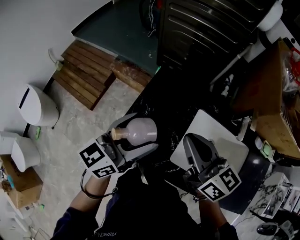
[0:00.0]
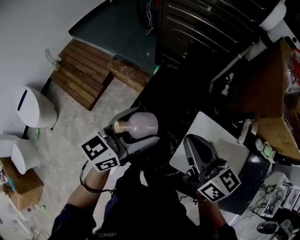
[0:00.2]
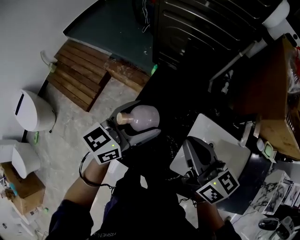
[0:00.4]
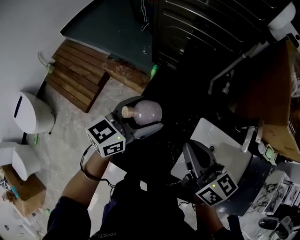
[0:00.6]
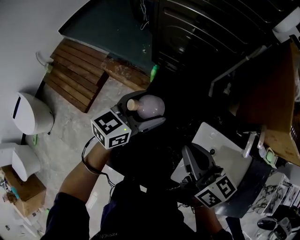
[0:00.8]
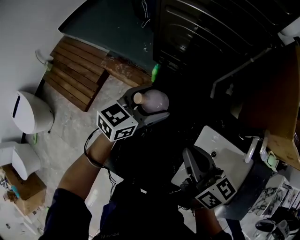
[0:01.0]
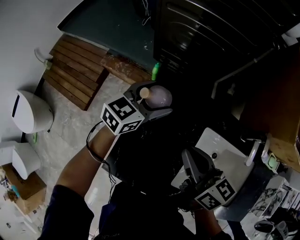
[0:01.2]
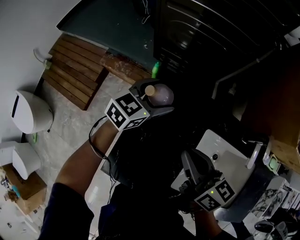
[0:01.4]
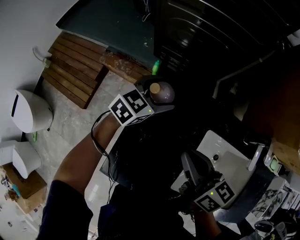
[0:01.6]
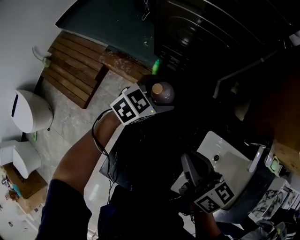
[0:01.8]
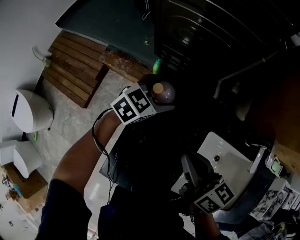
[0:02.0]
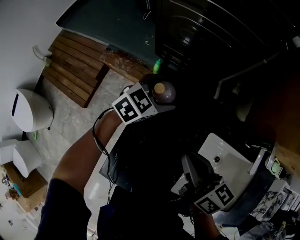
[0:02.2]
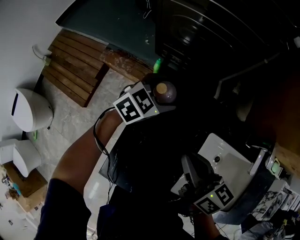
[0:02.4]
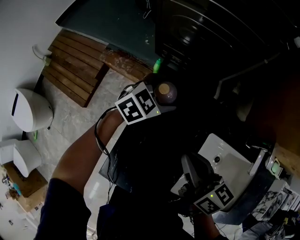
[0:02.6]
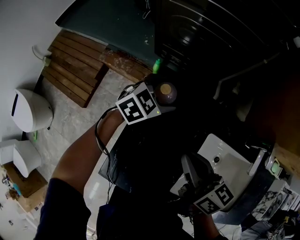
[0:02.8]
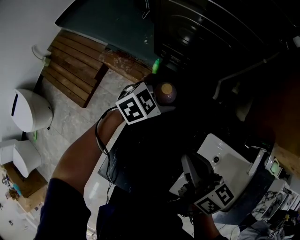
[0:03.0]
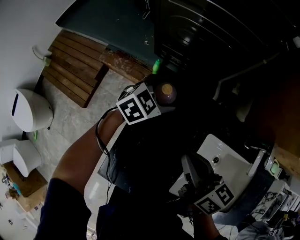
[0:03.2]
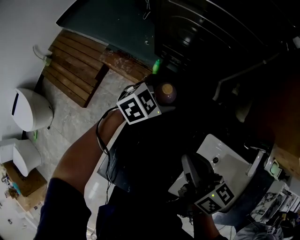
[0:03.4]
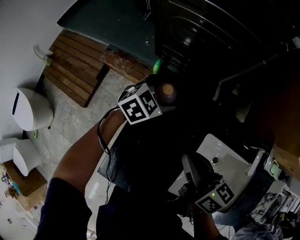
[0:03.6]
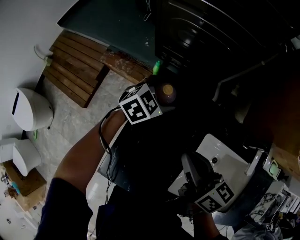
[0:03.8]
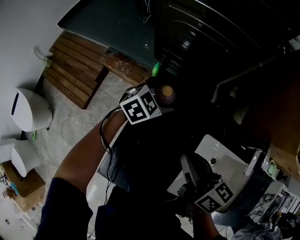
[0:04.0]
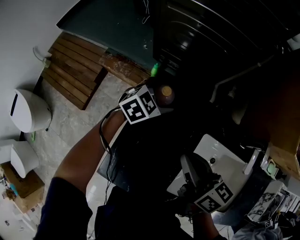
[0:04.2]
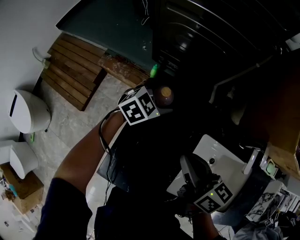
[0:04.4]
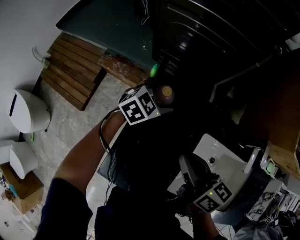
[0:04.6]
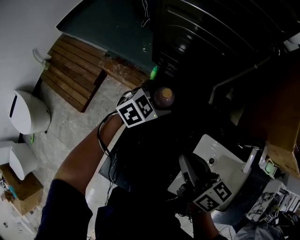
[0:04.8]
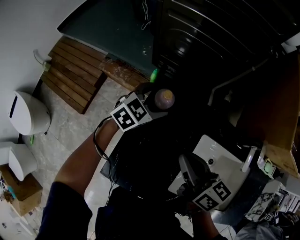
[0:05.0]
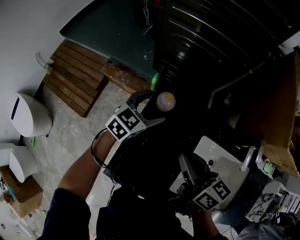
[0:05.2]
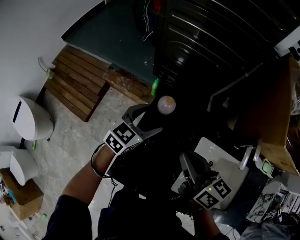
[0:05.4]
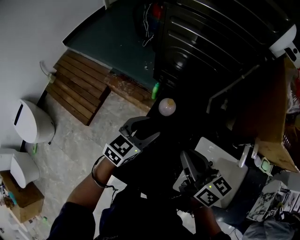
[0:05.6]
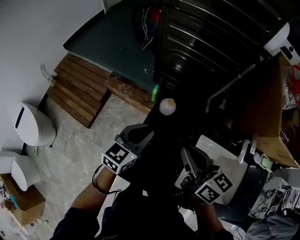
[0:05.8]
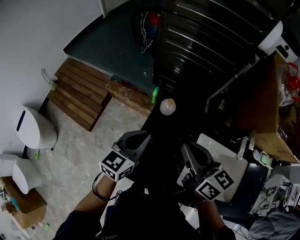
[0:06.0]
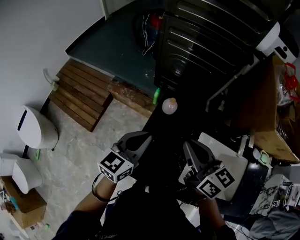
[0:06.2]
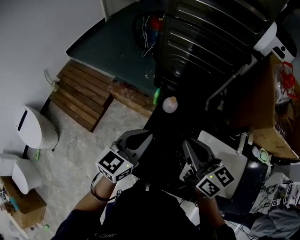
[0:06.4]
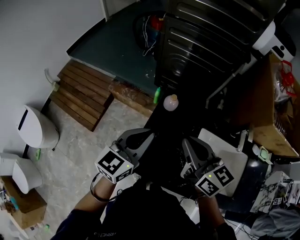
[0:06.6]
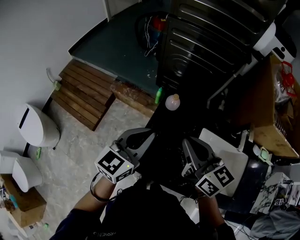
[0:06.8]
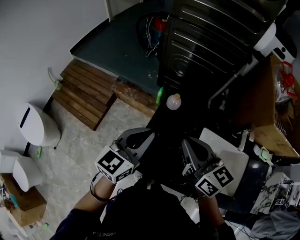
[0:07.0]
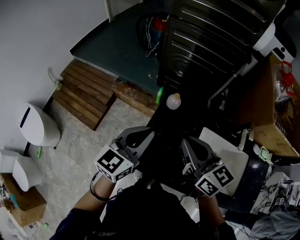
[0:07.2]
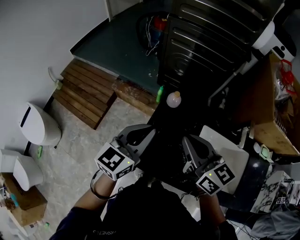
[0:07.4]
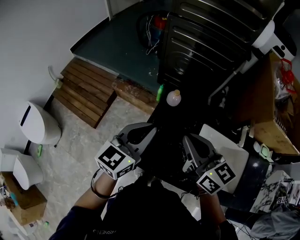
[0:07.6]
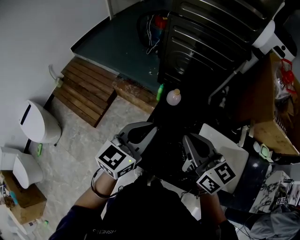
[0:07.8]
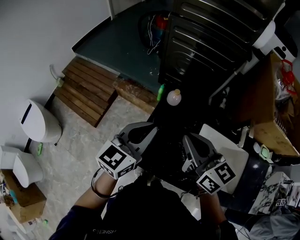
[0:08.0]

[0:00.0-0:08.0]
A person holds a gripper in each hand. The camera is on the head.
0:00.0 to 0:01.6: The left gripper moves forward and downward, some 35 cm, and tips its fingers downward by approximately 30 degrees. Meanwhile the right gripper goes approximately 15 cm downward and forward.
0:01.6 to 0:04.8: The grippers make only small movements.
0:04.8 to 0:06.4: The left gripper is displaced upward, backward and to the left by about 30 cm, turns by some 40 degrees, and closes its fingers. The right gripper heads upward, covering approximately 15 cm.
0:06.4 to 0:08.0: The grippers move only a little.

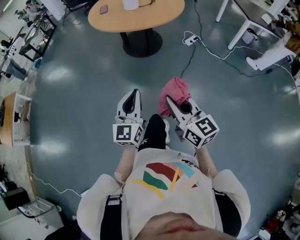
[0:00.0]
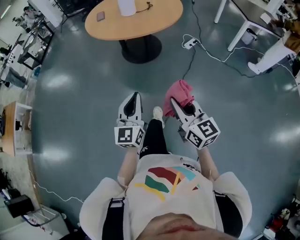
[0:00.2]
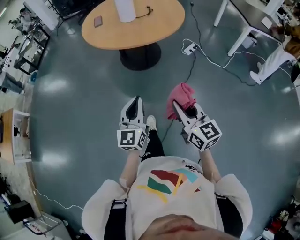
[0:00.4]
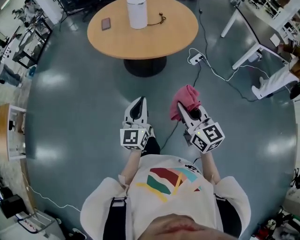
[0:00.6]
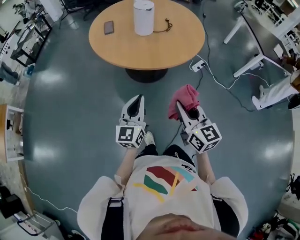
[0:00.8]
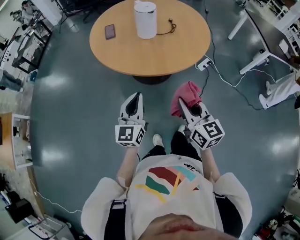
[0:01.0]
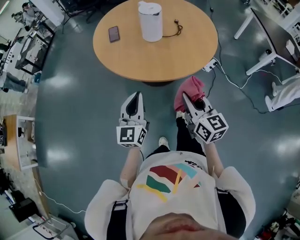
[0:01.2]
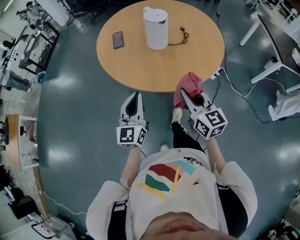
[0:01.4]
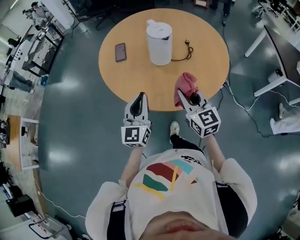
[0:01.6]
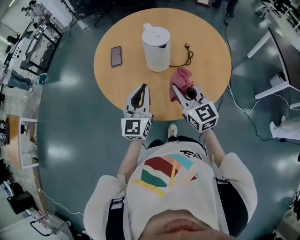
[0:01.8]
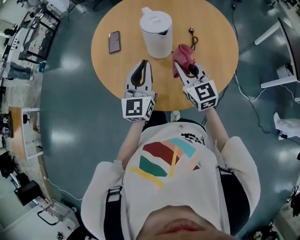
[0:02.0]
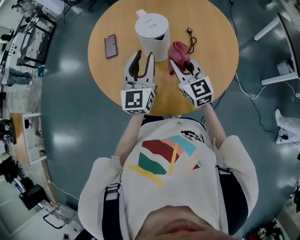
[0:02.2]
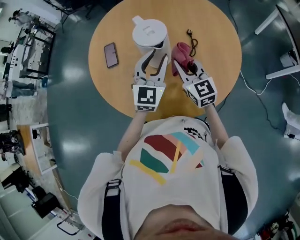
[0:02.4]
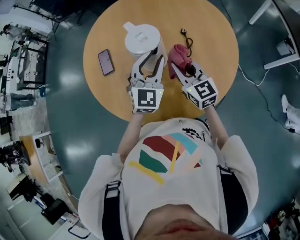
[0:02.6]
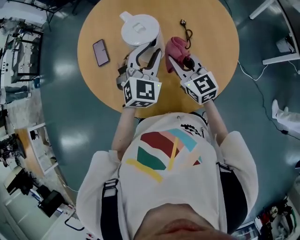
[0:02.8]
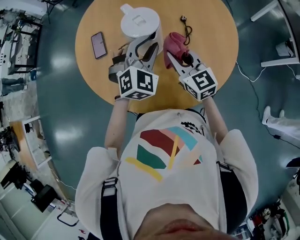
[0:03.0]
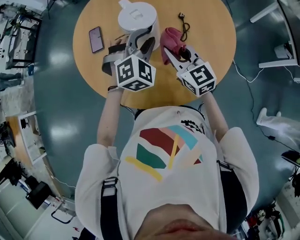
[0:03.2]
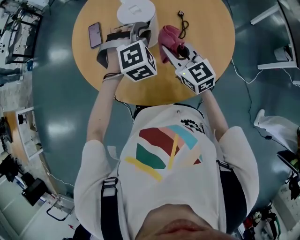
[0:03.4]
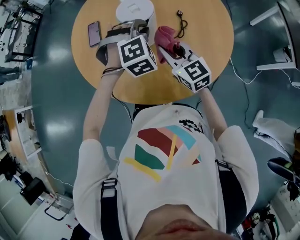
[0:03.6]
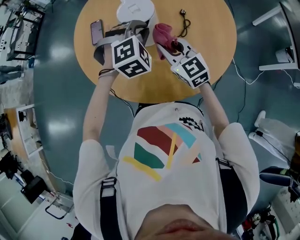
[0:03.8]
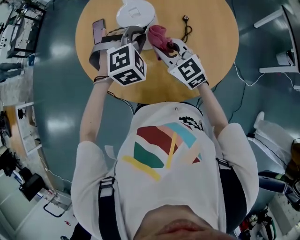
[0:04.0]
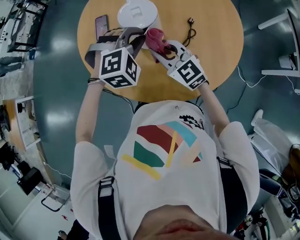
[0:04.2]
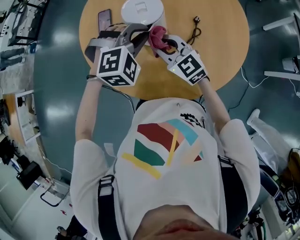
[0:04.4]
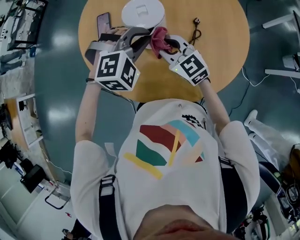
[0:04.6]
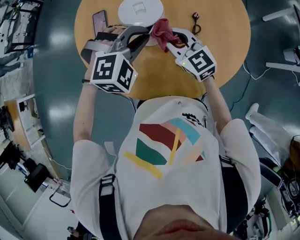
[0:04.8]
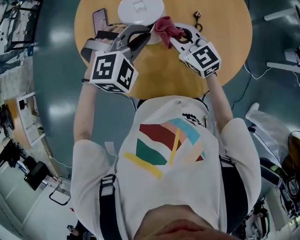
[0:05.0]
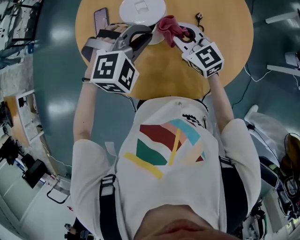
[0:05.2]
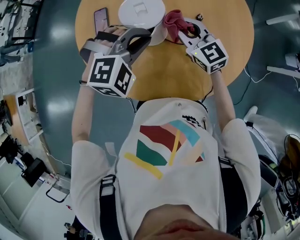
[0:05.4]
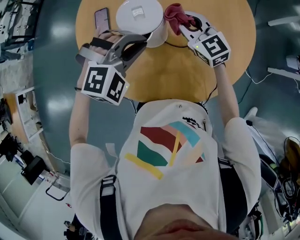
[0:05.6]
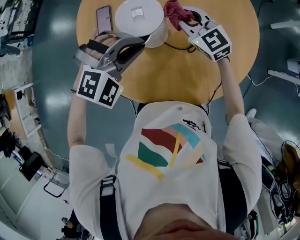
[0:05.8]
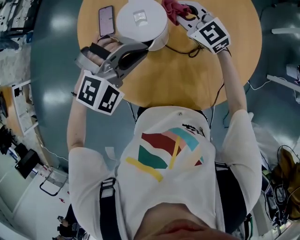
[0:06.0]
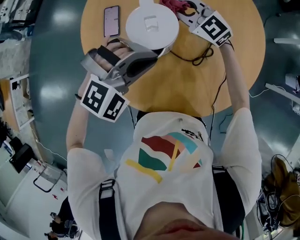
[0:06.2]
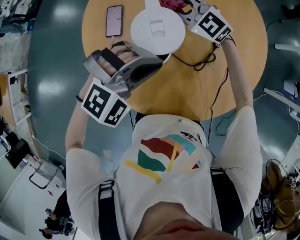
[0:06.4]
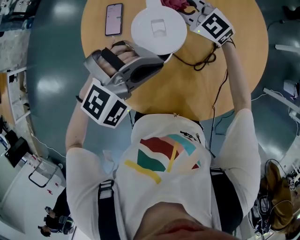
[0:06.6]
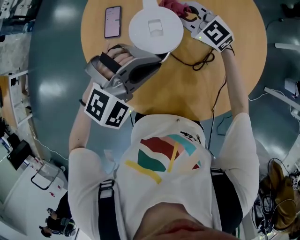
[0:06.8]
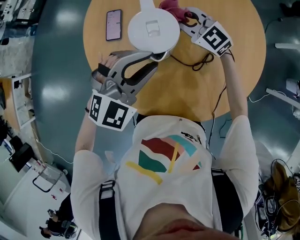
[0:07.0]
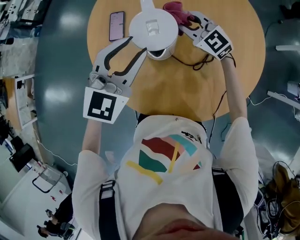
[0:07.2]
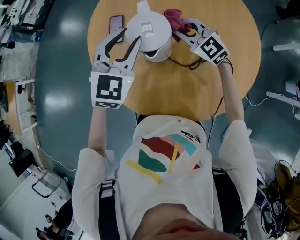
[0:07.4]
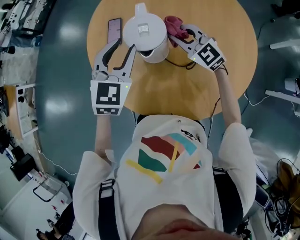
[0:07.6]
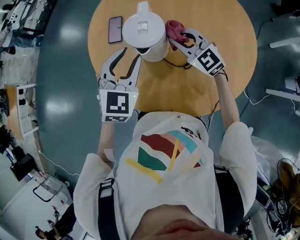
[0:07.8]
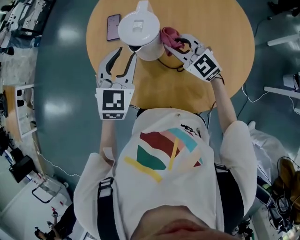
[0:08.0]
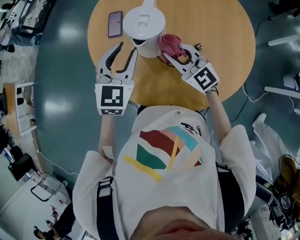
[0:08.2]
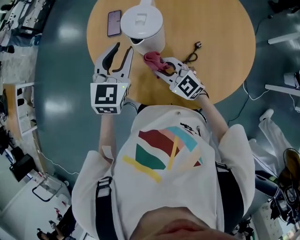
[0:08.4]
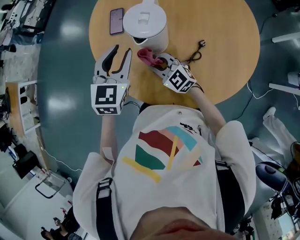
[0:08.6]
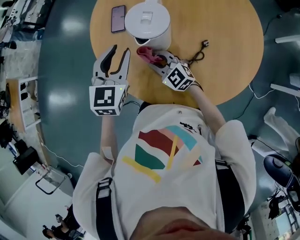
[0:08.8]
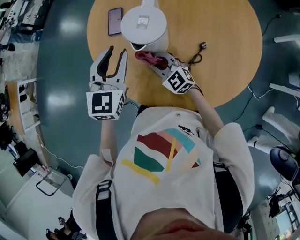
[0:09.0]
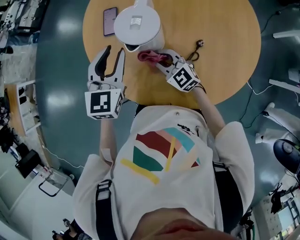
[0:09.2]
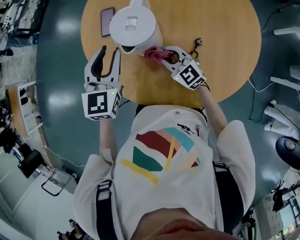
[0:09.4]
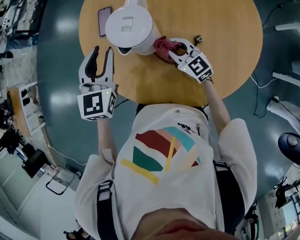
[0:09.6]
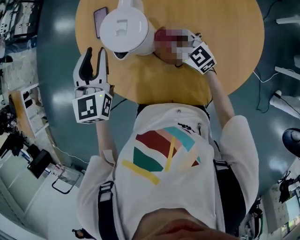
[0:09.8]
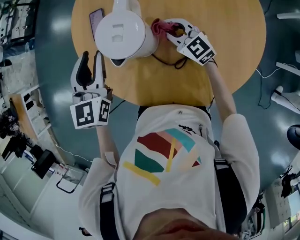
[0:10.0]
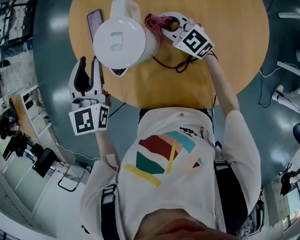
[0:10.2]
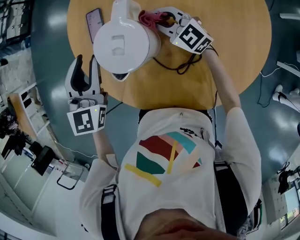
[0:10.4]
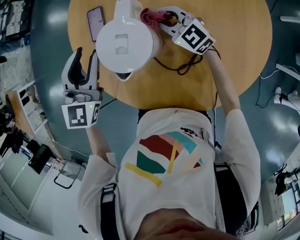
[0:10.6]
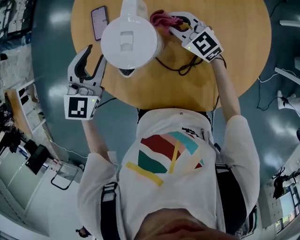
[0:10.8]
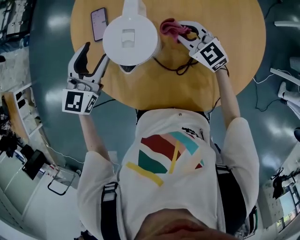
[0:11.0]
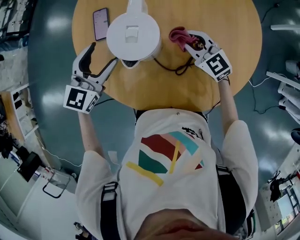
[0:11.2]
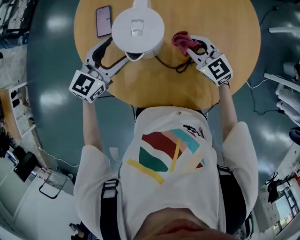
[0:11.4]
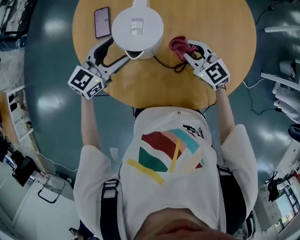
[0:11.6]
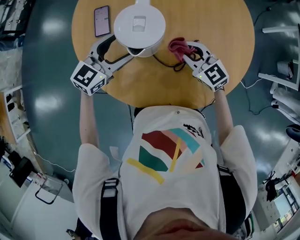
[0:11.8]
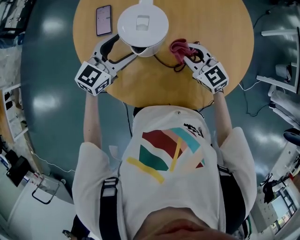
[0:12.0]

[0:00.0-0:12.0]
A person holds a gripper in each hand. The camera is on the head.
0:00.0 to 0:01.6: The pair of grippers is taken forward, some 70 cm.
0:01.6 to 0:03.0: The right gripper is displaced forward by about 25 cm; the left gripper travels forward and to the right by about 30 cm, and tips its fingers downward by some 30 degrees.
0:03.0 to 0:04.4: The left gripper rotates about 30 degrees. The right gripper goes roughly 10 cm to the left, and rotates about 30 degrees.
0:04.4 to 0:06.0: The right gripper shifts roughly 15 cm forward.
0:06.0 to 0:07.6: The left gripper goes about 10 cm to the left and forward, and rolls counterclockwise, seen from behind, by approximately 50 degrees.
0:07.6 to 0:09.0: The right gripper travels to the left, downward and backward by roughly 20 cm. Meanwhile the left gripper travels to the left by approximately 5 cm.
0:09.0 to 0:10.4: The left gripper moves forward, approximately 10 cm, while the right gripper goes roughly 20 cm to the right and forward.
0:10.4 to 0:12.0: The right gripper shifts some 15 cm backward. The left gripper is displaced downward by about 10 cm, swivels about 40 degrees, and opens up.

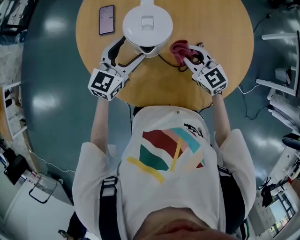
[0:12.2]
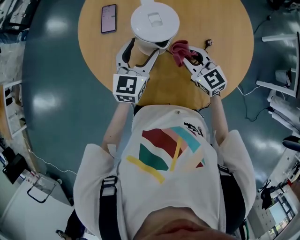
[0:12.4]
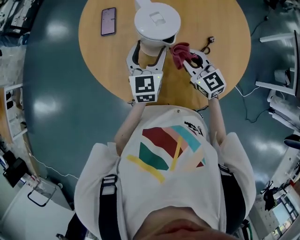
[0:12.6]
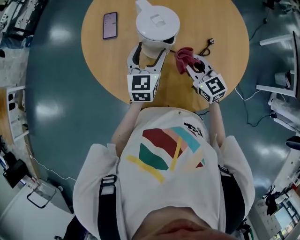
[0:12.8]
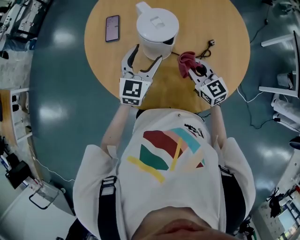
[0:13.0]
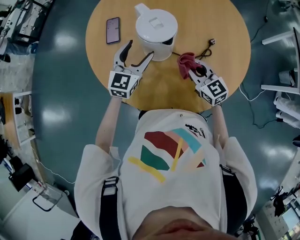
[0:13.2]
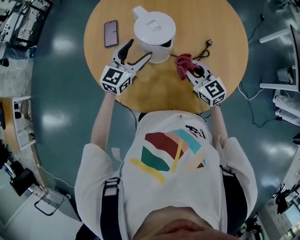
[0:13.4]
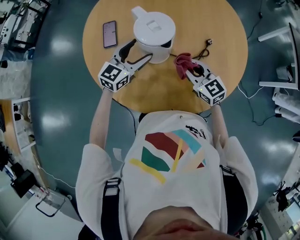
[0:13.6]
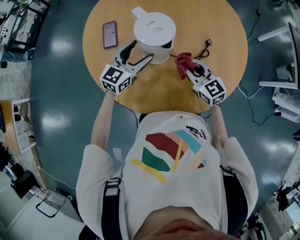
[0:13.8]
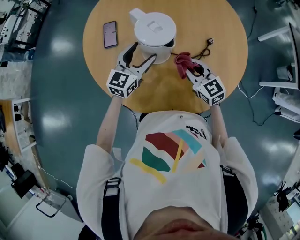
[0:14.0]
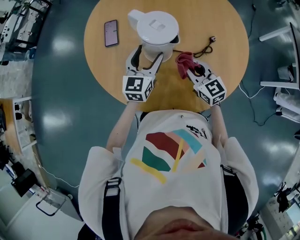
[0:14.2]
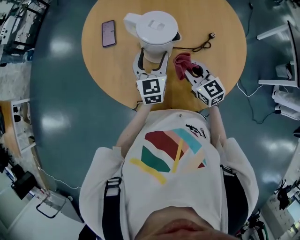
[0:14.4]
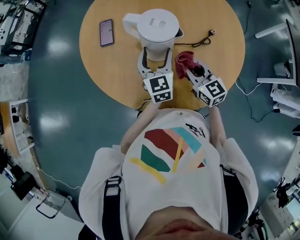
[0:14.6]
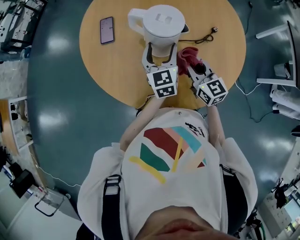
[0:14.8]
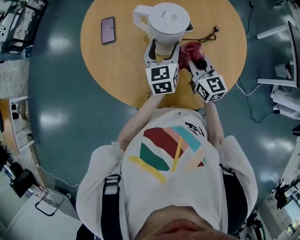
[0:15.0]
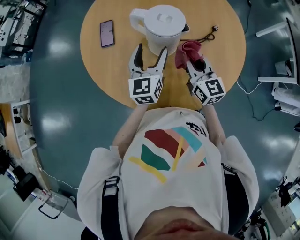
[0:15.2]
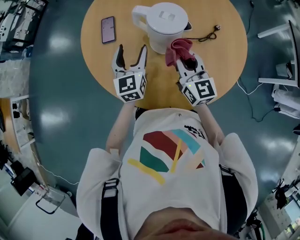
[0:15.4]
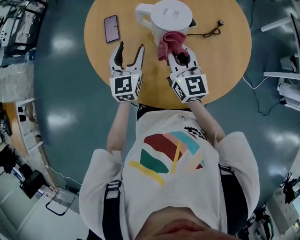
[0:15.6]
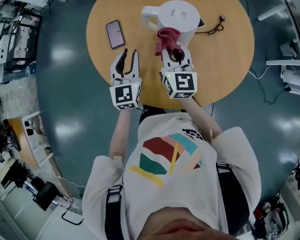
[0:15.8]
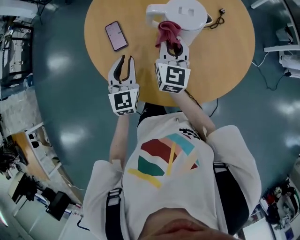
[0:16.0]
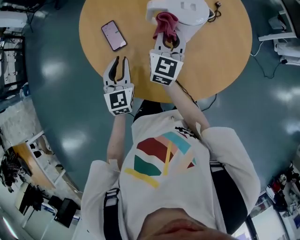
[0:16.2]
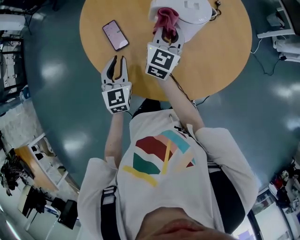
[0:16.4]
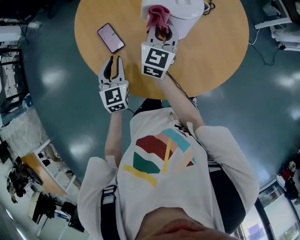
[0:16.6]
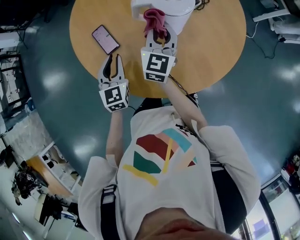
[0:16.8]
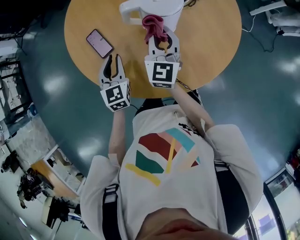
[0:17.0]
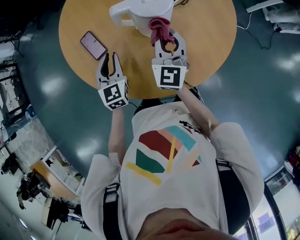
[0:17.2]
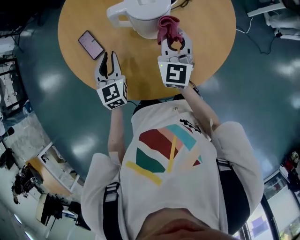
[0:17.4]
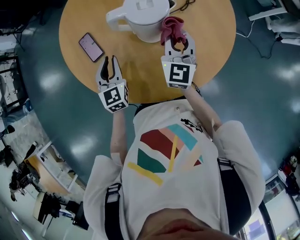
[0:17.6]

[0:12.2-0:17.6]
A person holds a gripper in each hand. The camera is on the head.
0:12.2 to 0:13.6: The right gripper moves roughly 5 cm.
0:13.6 to 0:15.0: The left gripper heads to the right, covering some 5 cm, and swivels about 40 degrees.
0:15.0 to 0:16.2: The left gripper changes place by approximately 25 cm, rotates approximately 30 degrees, and closes its fingers; the right gripper moves about 20 cm, and turns by roughly 50 degrees.
0:16.2 to 0:17.6: The left gripper goes some 5 cm to the right, while the right gripper shifts approximately 15 cm to the right.
